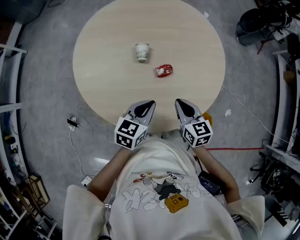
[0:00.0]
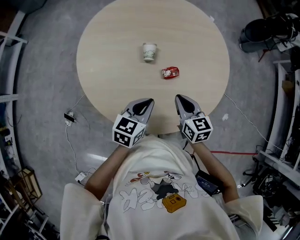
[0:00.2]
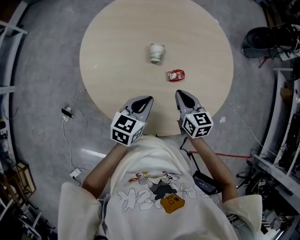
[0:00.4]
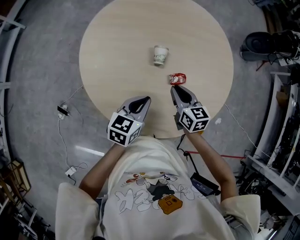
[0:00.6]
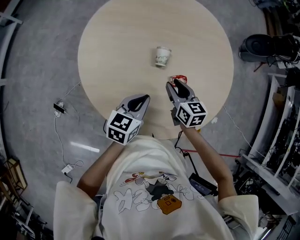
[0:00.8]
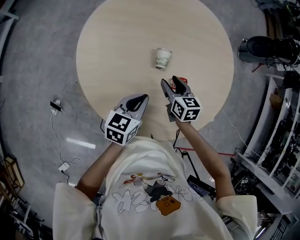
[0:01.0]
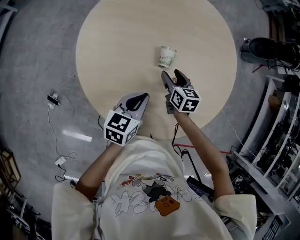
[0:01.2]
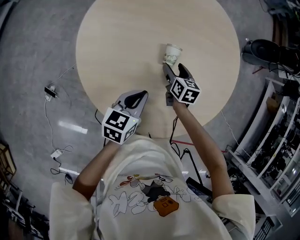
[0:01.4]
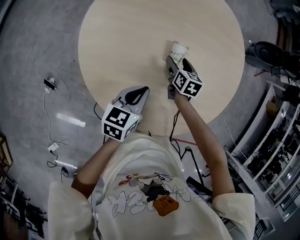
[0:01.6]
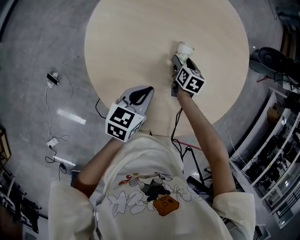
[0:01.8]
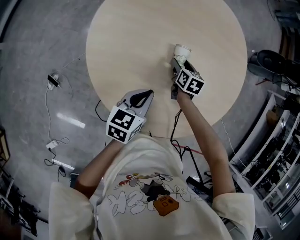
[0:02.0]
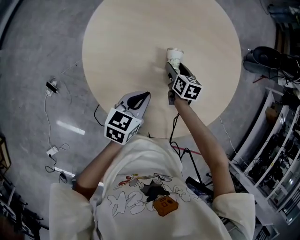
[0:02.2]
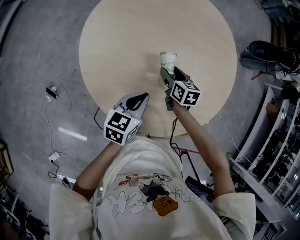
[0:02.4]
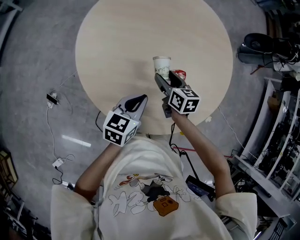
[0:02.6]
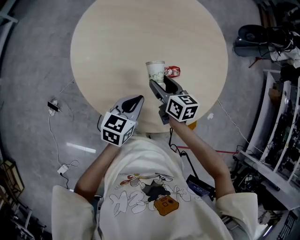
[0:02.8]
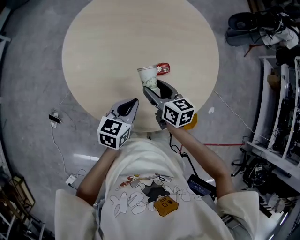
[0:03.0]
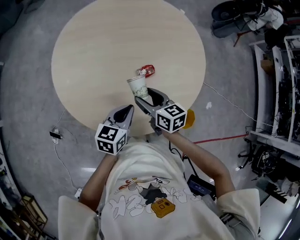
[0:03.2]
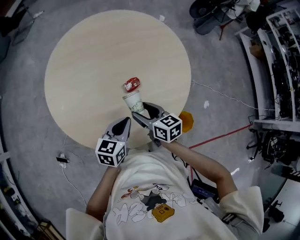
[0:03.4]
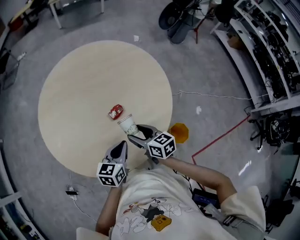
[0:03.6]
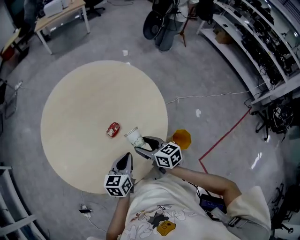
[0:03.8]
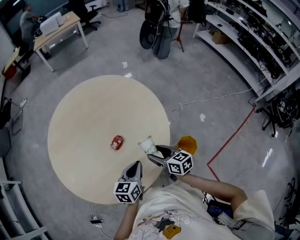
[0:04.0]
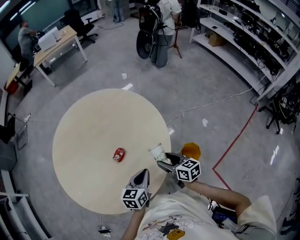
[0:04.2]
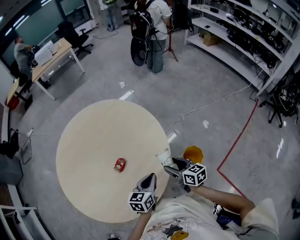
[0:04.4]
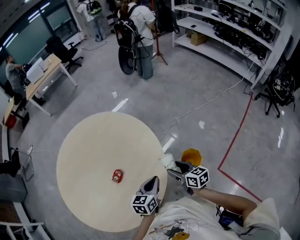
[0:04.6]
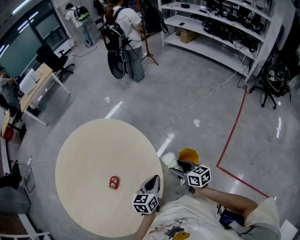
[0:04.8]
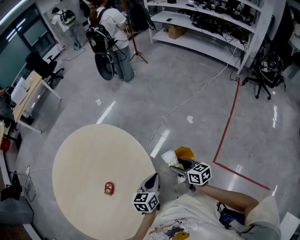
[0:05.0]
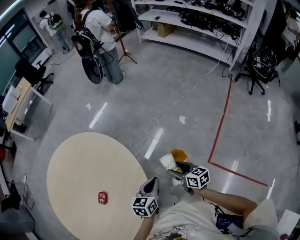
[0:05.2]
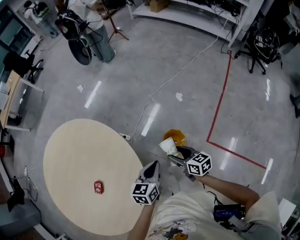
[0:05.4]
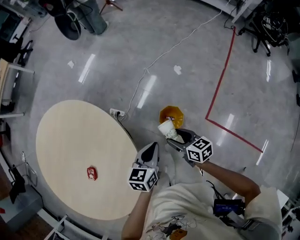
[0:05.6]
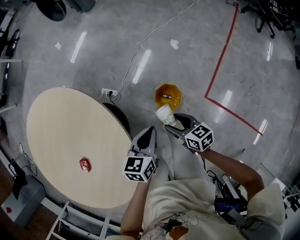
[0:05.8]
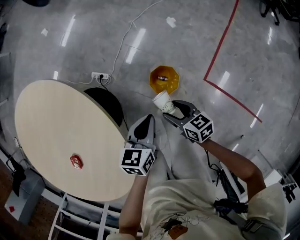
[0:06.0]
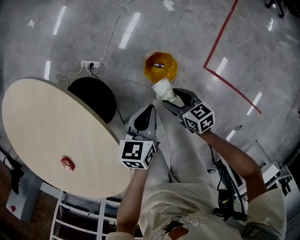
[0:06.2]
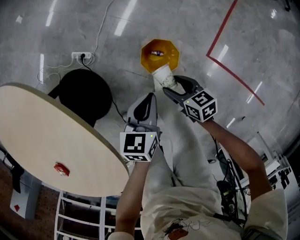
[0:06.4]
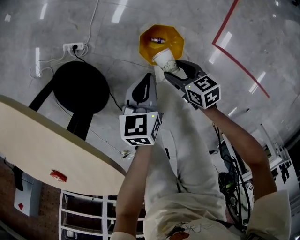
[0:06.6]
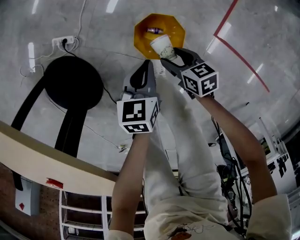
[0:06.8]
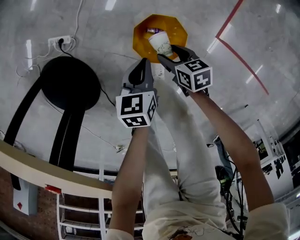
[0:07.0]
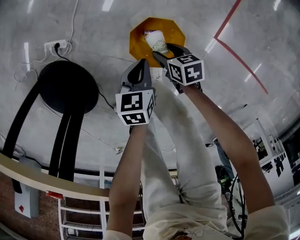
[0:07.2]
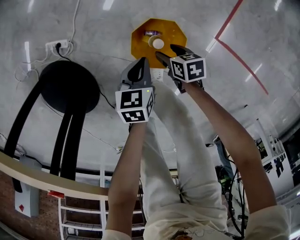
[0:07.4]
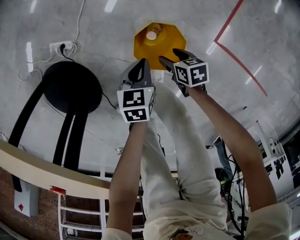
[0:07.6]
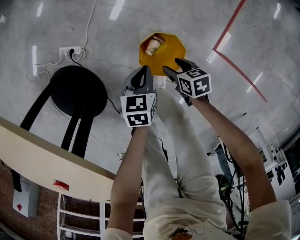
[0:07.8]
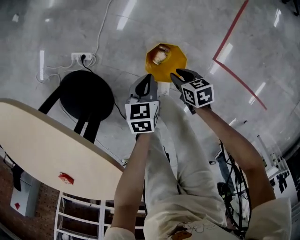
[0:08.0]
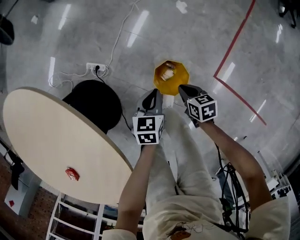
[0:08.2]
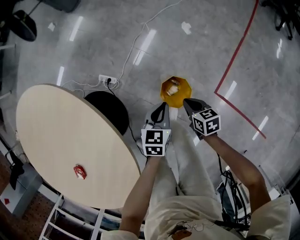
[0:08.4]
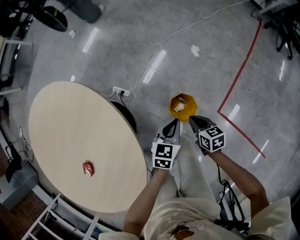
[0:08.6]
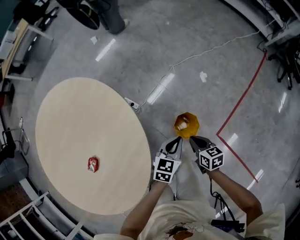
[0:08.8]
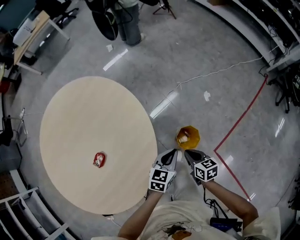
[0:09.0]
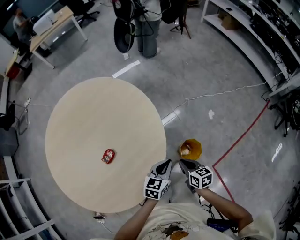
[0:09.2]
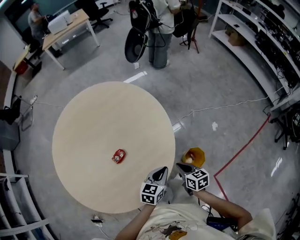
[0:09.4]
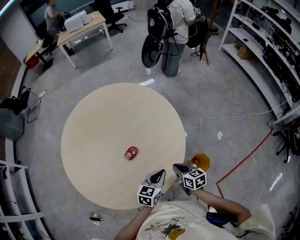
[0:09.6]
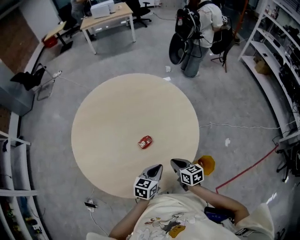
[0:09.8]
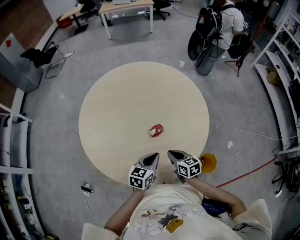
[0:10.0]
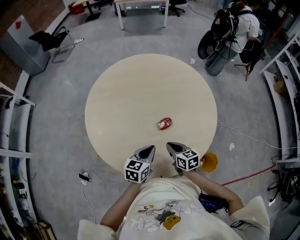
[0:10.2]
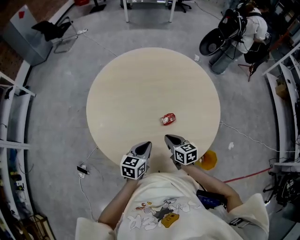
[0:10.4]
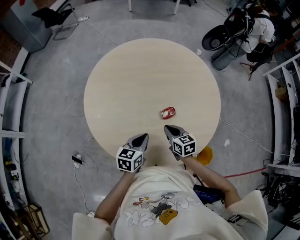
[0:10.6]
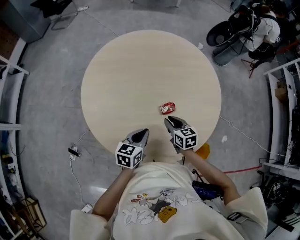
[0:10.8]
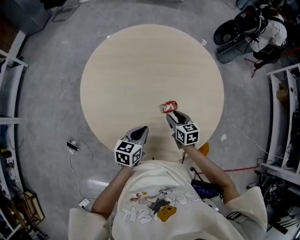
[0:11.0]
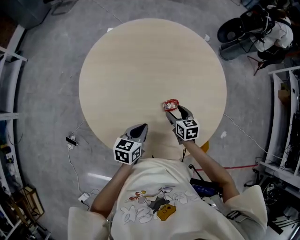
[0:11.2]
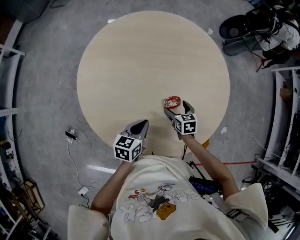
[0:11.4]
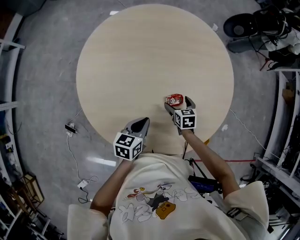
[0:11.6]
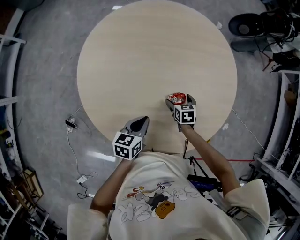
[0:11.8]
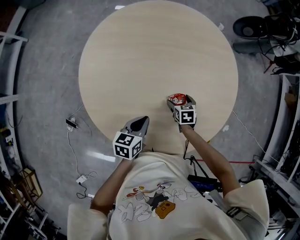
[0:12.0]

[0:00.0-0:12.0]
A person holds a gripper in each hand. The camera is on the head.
0:00.0 to 0:01.6: The left gripper shifts roughly 20 cm to the left and forward, and turns by roughly 20 degrees, while the right gripper moves forward, to the left and downward, some 30 cm, and opens up.
0:01.6 to 0:03.0: The left gripper shifts some 15 cm to the right and backward. Meanwhile the right gripper travels backward and upward by about 20 cm, and changes its angle by some 20 degrees.
0:03.0 to 0:04.4: The right gripper ends up approximately 30 cm from where it was, and changes its angle by roughly 40 degrees, while the left gripper changes place by some 25 cm, and turns by approximately 30 degrees.
0:04.4 to 0:06.0: The right gripper goes about 35 cm to the right and downward, and swivels about 20 degrees. The left gripper is displaced to the right, downward and forward by roughly 35 cm, and turns by some 30 degrees.
0:06.0 to 0:07.6: The two grippers go about 35 cm downward. The right gripper changes its angle by some 30 degrees.
0:07.6 to 0:09.0: The two grippers go some 40 cm upward. The left gripper changes its angle by about 30 degrees, while the right gripper swivels roughly 30 degrees, and closes its fingers.
0:09.0 to 0:10.4: The two grippers travel together, roughly 50 cm. The left gripper turns by about 40 degrees. Meanwhile the right gripper changes its angle by roughly 50 degrees.
0:10.4 to 0:12.0: The right gripper travels downward and forward by approximately 20 cm, turns by roughly 30 degrees, and opens; the left gripper moves to the left, downward and forward, some 10 cm.

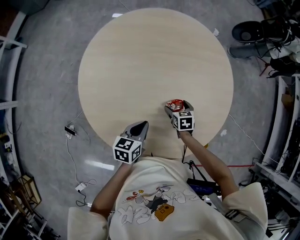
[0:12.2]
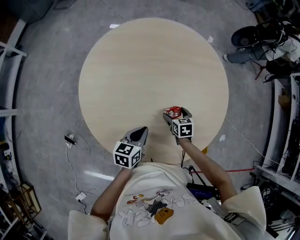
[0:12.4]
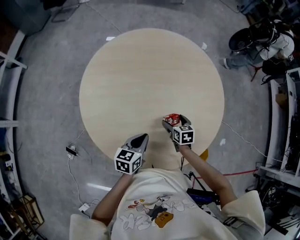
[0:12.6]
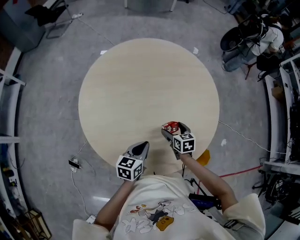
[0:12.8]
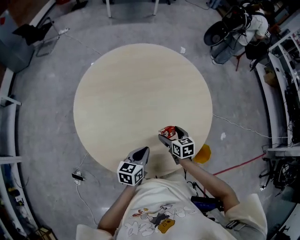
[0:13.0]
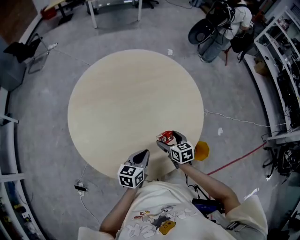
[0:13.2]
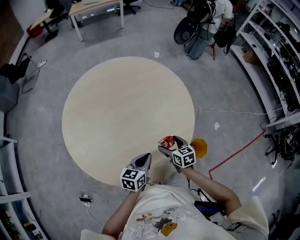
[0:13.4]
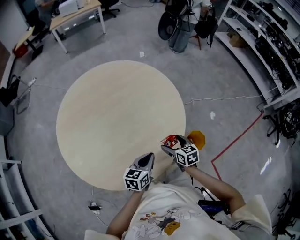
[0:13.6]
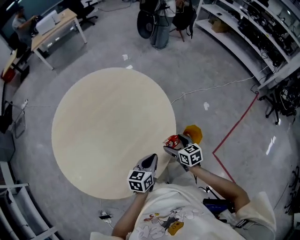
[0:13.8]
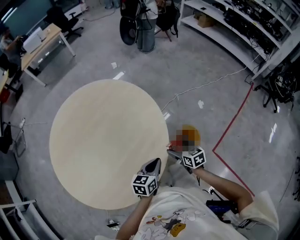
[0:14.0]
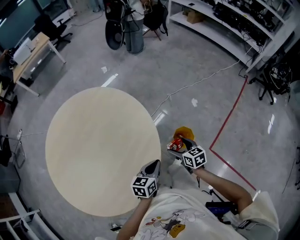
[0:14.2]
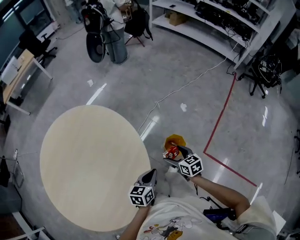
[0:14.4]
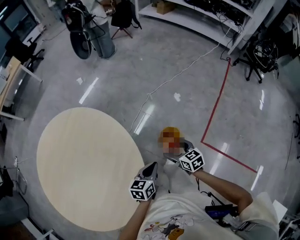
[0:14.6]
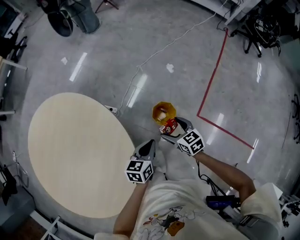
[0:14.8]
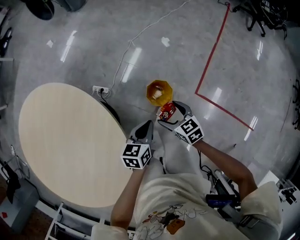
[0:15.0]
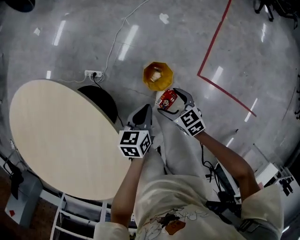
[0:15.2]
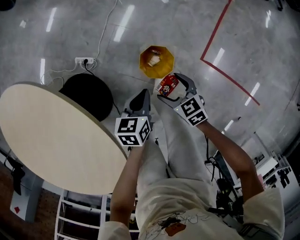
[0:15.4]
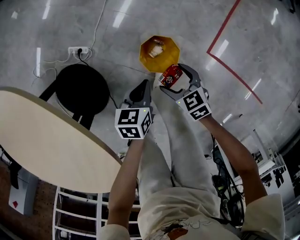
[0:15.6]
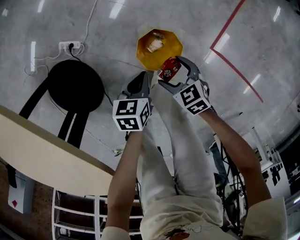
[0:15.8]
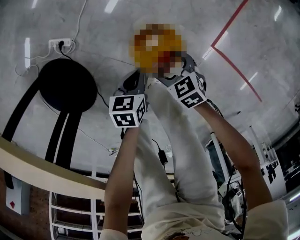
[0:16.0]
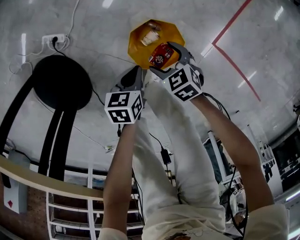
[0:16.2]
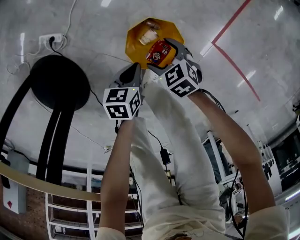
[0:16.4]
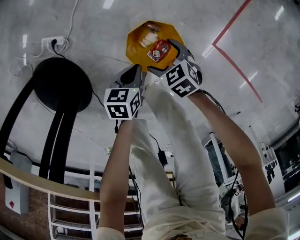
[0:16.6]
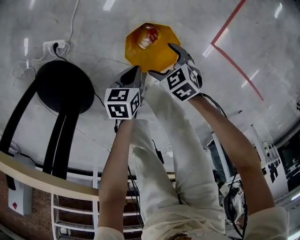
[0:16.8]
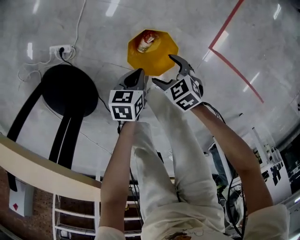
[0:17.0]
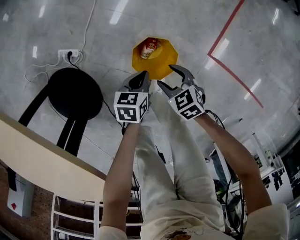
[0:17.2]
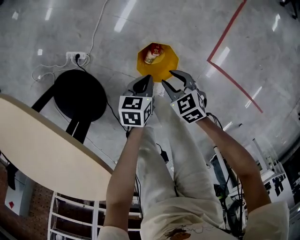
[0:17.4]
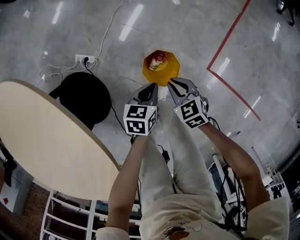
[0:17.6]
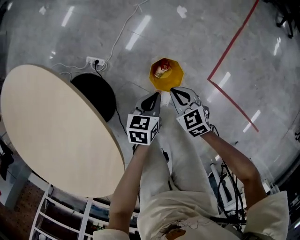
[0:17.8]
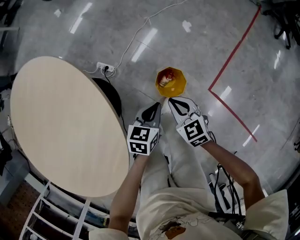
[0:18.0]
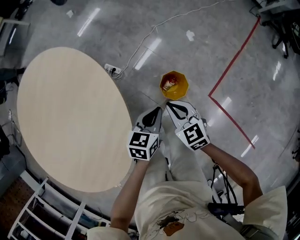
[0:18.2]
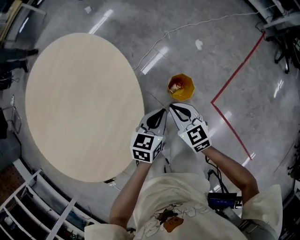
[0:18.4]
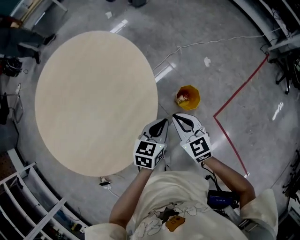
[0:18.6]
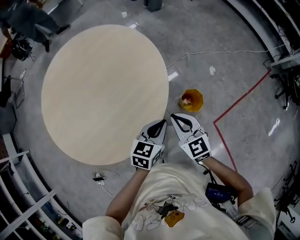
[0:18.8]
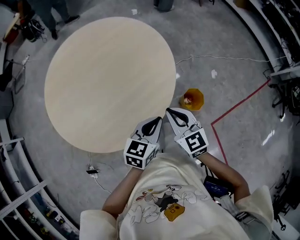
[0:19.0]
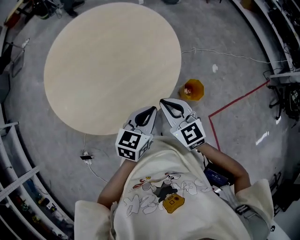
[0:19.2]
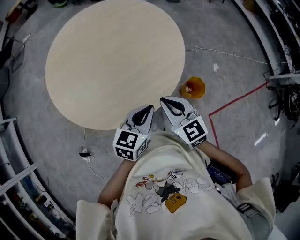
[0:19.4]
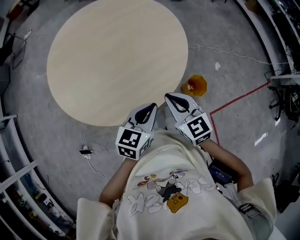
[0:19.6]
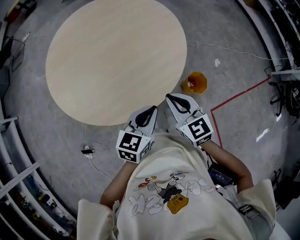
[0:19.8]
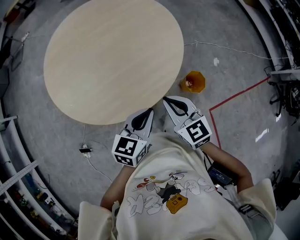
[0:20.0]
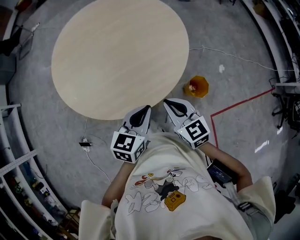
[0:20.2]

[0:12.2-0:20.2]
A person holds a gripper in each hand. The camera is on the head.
0:12.2 to 0:13.8: The right gripper moves about 35 cm, and rotates about 40 degrees; the left gripper shifts by approximately 30 cm, and changes its angle by approximately 40 degrees.
0:13.8 to 0:15.4: Both grippers move to the right, downward and forward, roughly 50 cm. The left gripper rotates approximately 30 degrees.
0:15.4 to 0:17.0: The two grippers go about 25 cm downward.
0:17.0 to 0:18.6: Both grippers travel together upward, approximately 50 cm. The left gripper swivels some 40 degrees. Meanwhile the right gripper tips its fingers upward by some 30 degrees, and closes.
0:18.6 to 0:20.2: Both grippers travel together to the left, backward and upward, some 30 cm. The left gripper changes its angle by some 20 degrees. The right gripper changes its angle by approximately 20 degrees.

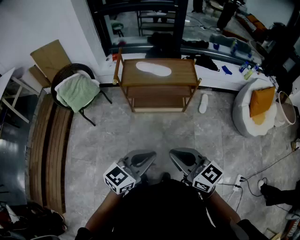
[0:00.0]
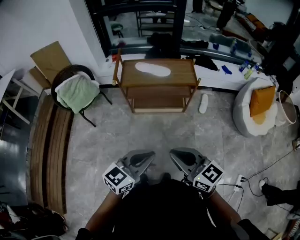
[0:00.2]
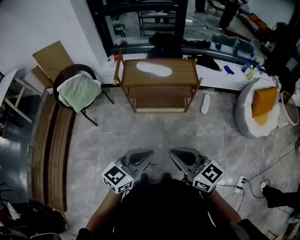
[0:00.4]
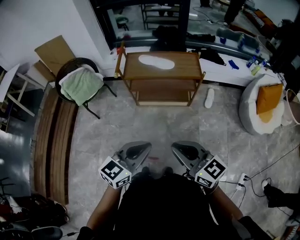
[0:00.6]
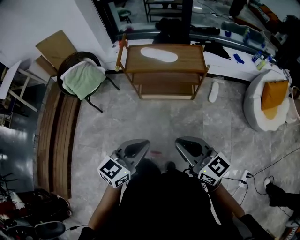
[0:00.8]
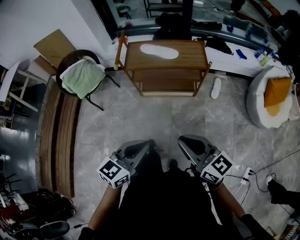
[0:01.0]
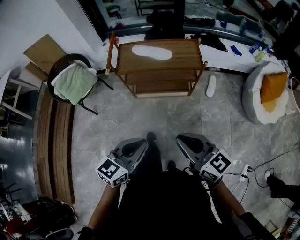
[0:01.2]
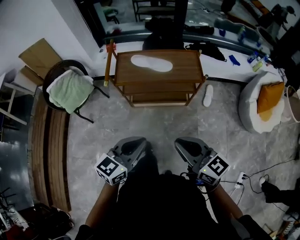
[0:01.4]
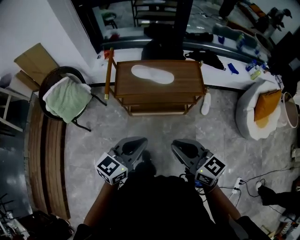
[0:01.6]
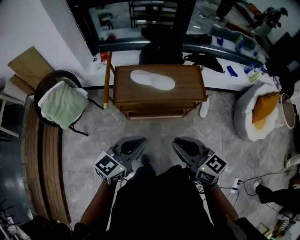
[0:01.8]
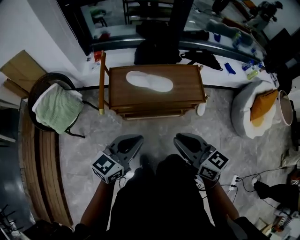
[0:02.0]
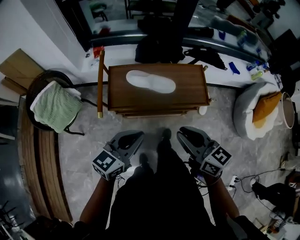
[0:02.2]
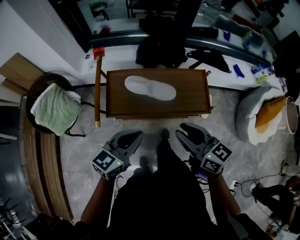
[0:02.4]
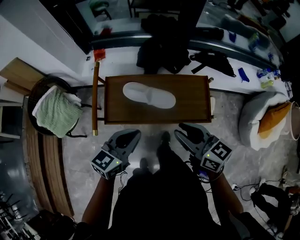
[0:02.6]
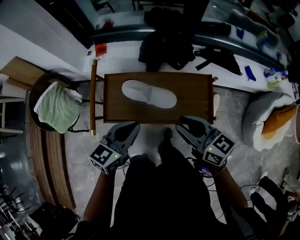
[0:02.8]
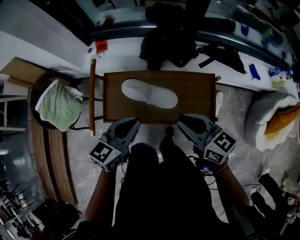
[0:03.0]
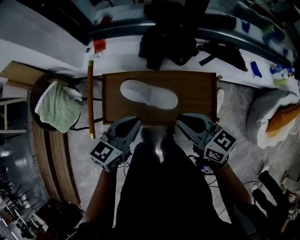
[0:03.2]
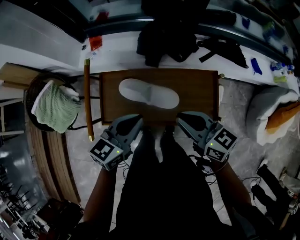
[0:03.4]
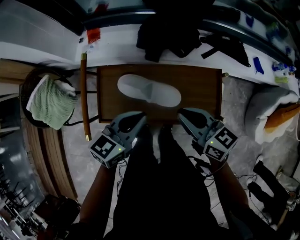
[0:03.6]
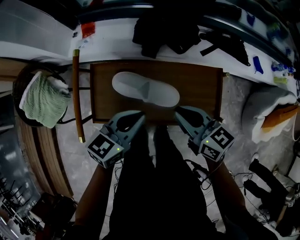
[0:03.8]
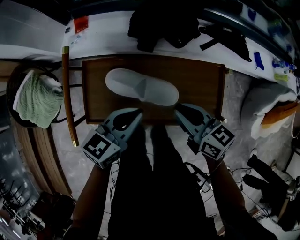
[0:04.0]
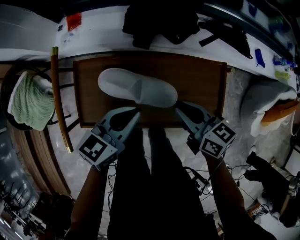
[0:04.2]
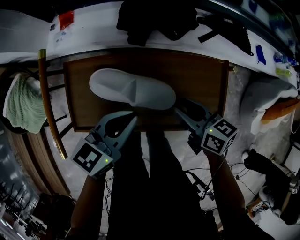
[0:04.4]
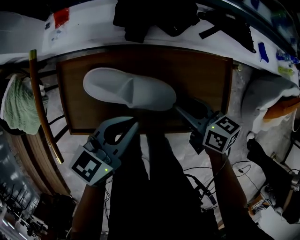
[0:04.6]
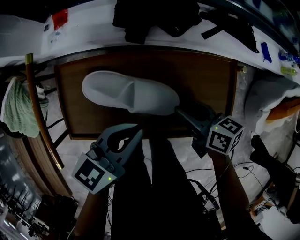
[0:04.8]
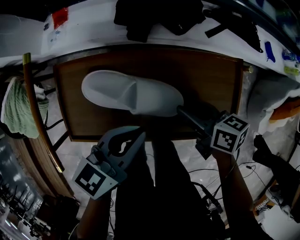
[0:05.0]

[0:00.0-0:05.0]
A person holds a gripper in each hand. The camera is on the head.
0:00.0 to 0:01.6: Both grippers travel together forward, about 25 cm.
0:01.6 to 0:03.4: The two grippers go about 40 cm forward.
0:03.4 to 0:05.0: The left gripper moves downward, approximately 15 cm. The right gripper goes some 25 cm downward, swivels roughly 30 degrees, and opens up.
